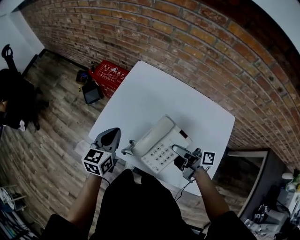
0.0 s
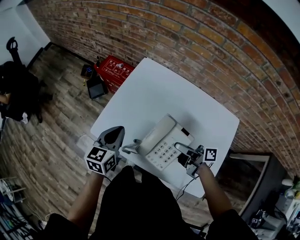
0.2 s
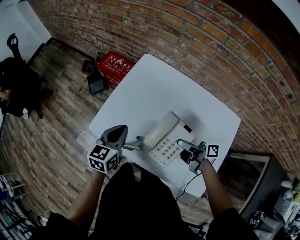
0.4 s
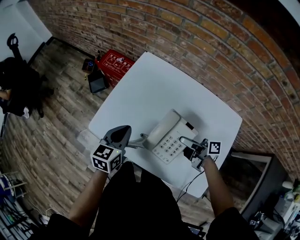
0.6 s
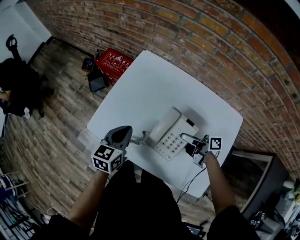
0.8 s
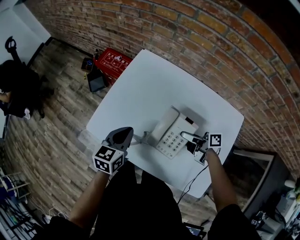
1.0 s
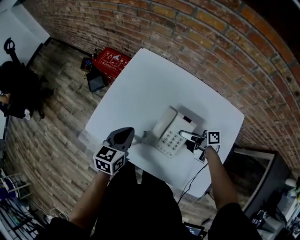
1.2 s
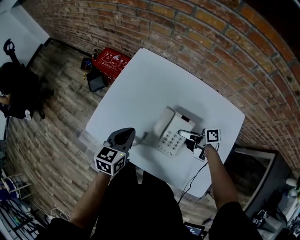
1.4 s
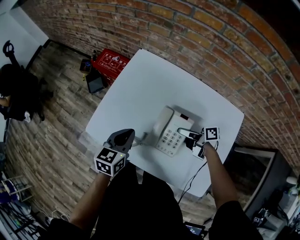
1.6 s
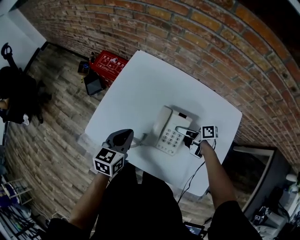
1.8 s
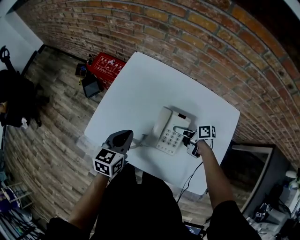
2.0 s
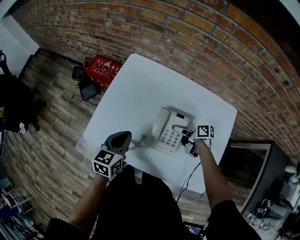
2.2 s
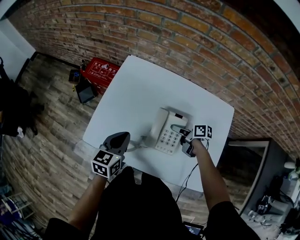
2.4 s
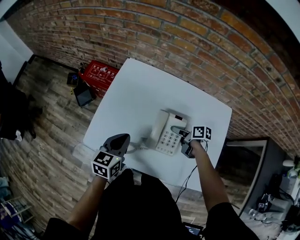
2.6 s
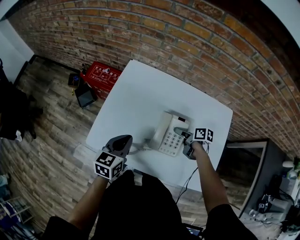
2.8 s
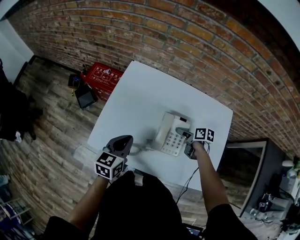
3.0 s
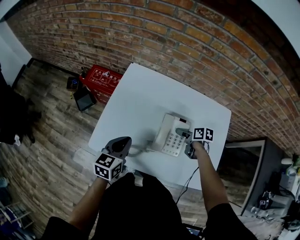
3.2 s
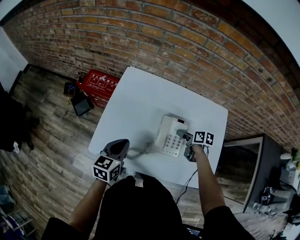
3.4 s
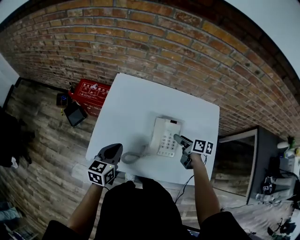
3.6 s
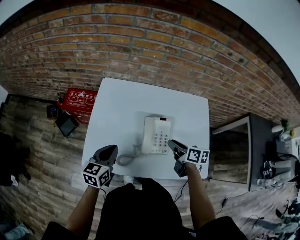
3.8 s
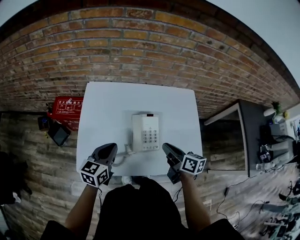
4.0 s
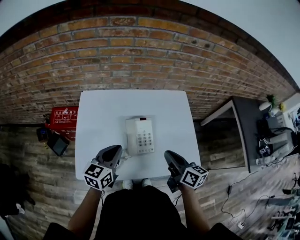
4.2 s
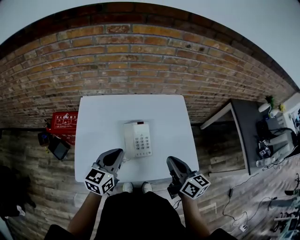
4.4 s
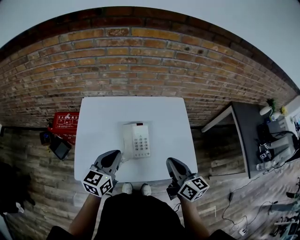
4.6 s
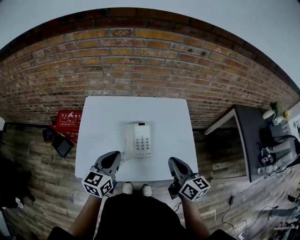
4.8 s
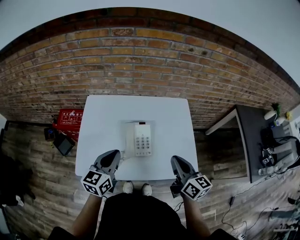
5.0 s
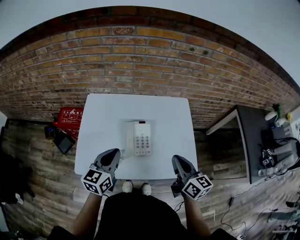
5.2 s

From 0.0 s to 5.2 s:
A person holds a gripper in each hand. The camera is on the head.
From 0.0 s to 1.8 s: The left gripper shifts by approximately 10 cm.
From 1.8 s to 3.4 s: The left gripper shifts by roughly 5 cm.
From 3.4 s to 5.2 s: The left gripper ends up about 15 cm from where it was.

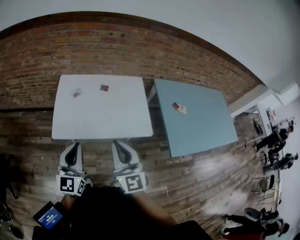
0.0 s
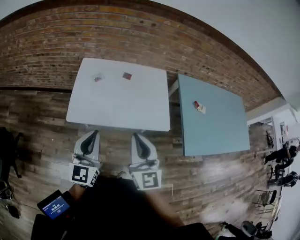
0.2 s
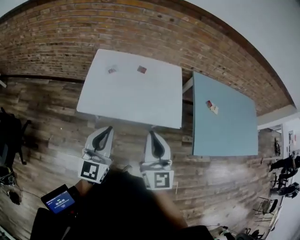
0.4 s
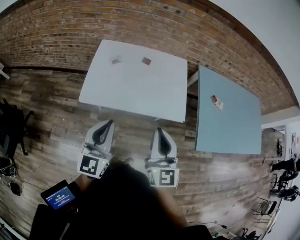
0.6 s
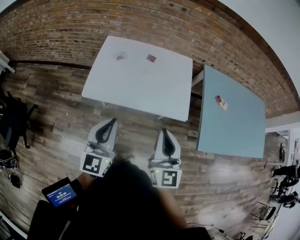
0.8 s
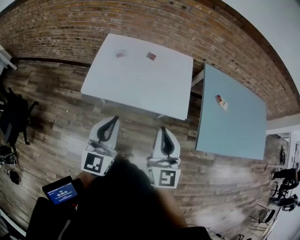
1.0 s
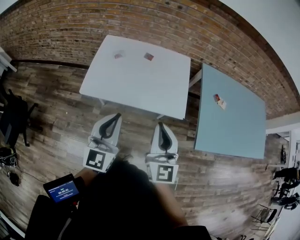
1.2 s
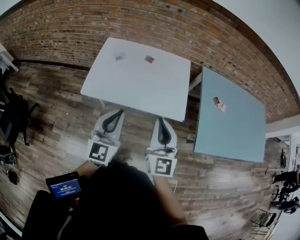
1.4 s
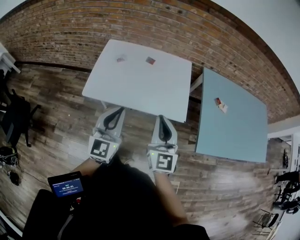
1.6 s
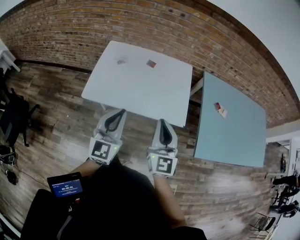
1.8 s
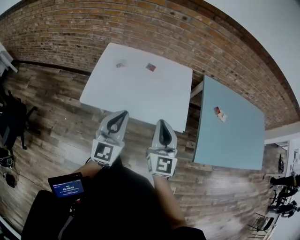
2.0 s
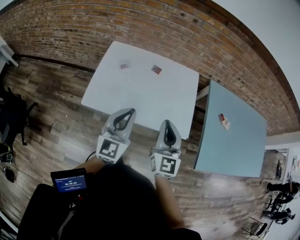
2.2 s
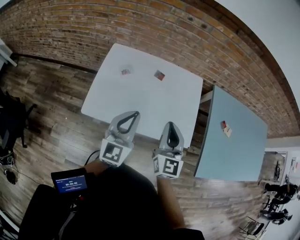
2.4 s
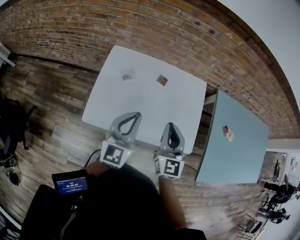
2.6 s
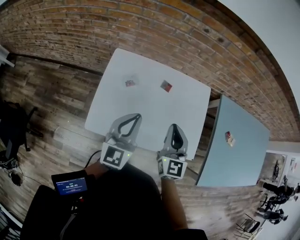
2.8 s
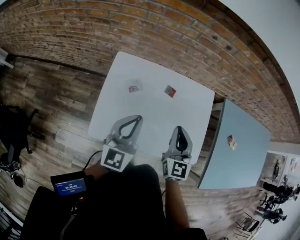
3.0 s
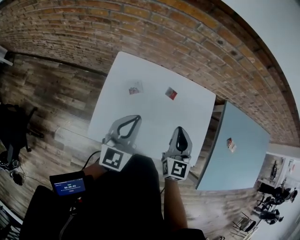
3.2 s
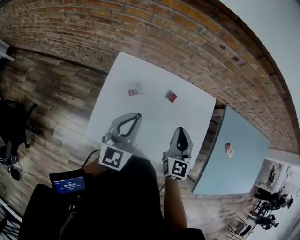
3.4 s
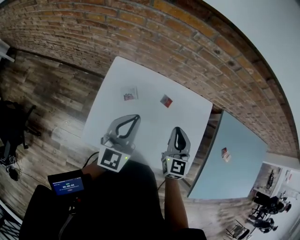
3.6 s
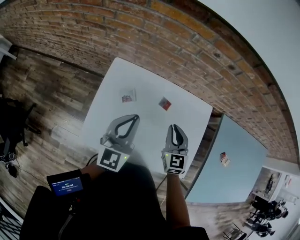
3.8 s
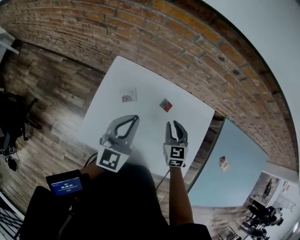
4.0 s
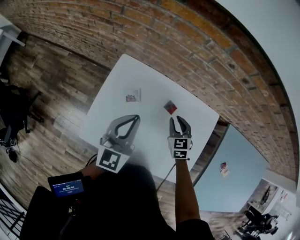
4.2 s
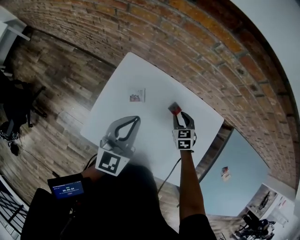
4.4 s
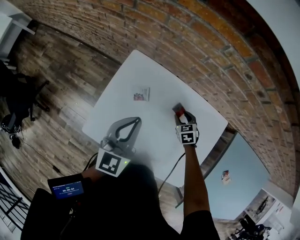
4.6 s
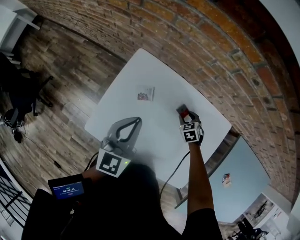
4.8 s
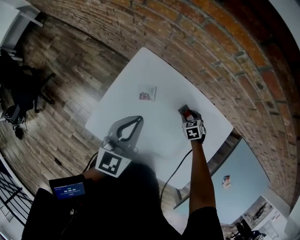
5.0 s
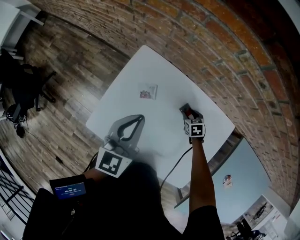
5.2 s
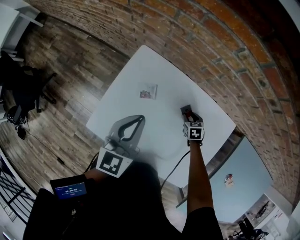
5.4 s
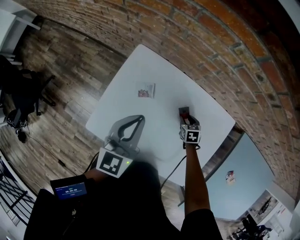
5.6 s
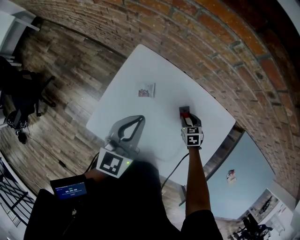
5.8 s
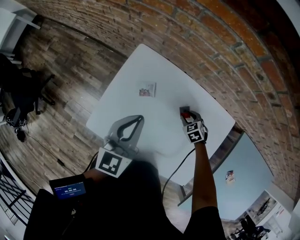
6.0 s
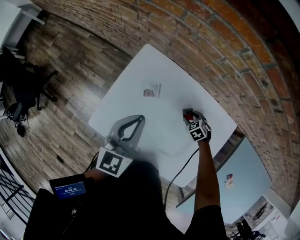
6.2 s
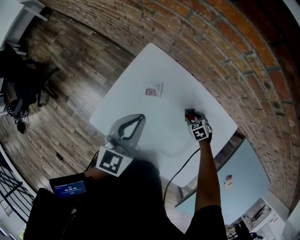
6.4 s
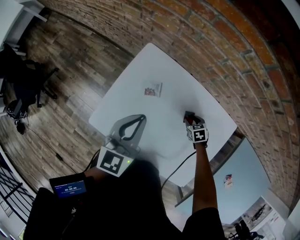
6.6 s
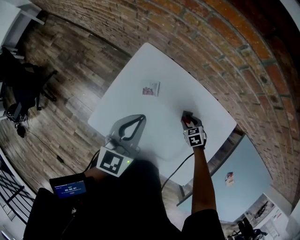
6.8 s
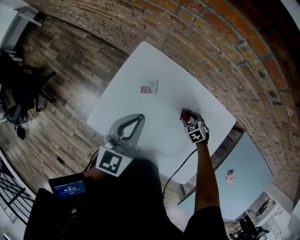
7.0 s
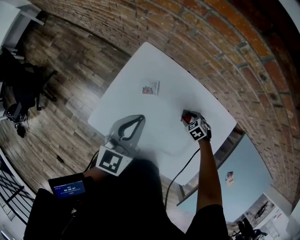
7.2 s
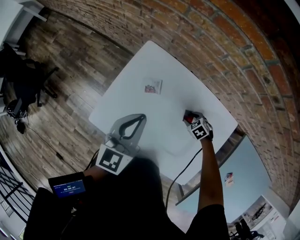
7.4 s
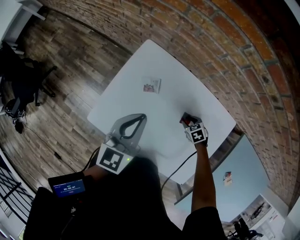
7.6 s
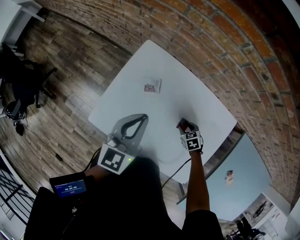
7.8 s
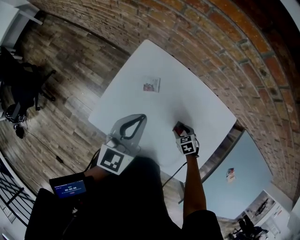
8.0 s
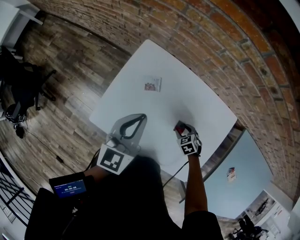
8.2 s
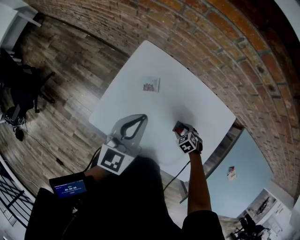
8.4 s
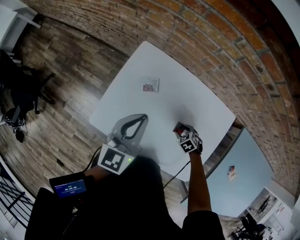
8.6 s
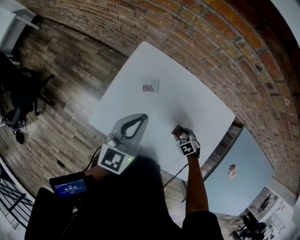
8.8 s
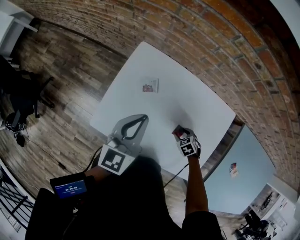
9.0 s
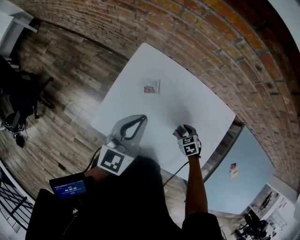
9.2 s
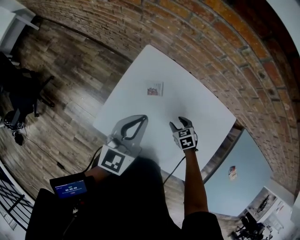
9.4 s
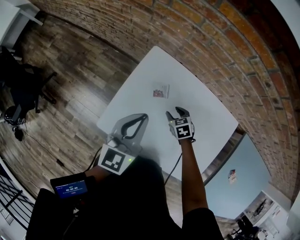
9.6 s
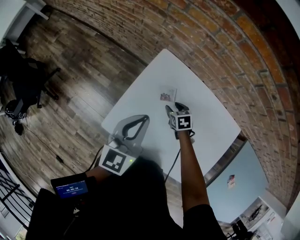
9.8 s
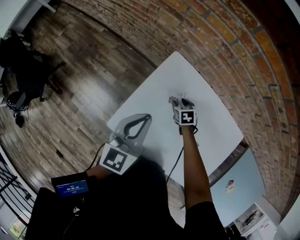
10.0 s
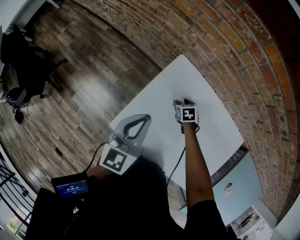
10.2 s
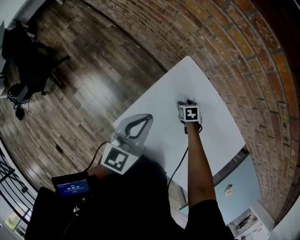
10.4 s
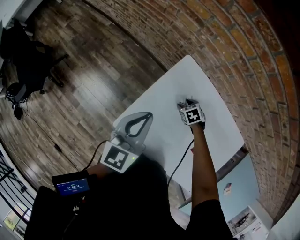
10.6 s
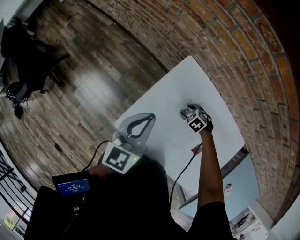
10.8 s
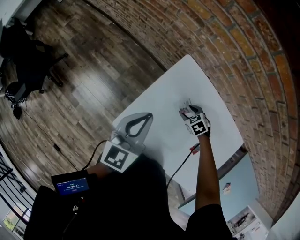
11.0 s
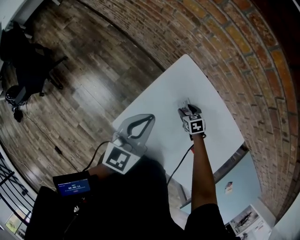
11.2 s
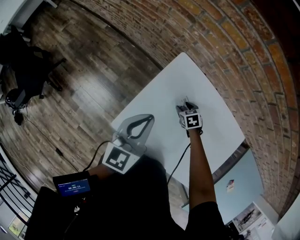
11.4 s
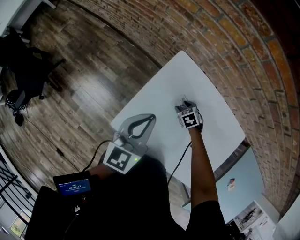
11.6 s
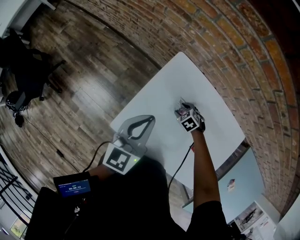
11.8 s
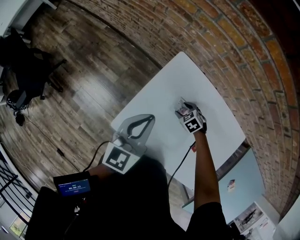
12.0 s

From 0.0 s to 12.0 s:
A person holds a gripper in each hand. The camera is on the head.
From 0.0 s to 1.6 s: The grippers both shift to the right by approximately 10 cm.
From 1.6 s to 3.0 s: The left gripper heads forward and to the left, covering approximately 30 cm; the right gripper is displaced forward by roughly 30 cm.
From 3.0 s to 4.4 s: The left gripper is displaced forward by some 10 cm, while the right gripper is displaced downward and forward by approximately 30 cm, tips its fingers downward by about 40 degrees, and opens.
From 4.4 s to 6.0 s: The right gripper goes roughly 10 cm downward, and turns by roughly 20 degrees.
From 6.0 s to 7.6 s: The grippers make only small movements.
From 7.6 s to 9.0 s: The right gripper shifts by about 10 cm.
From 9.0 s to 10.4 s: The right gripper changes place by approximately 30 cm. Meanwhile the left gripper ends up some 15 cm from where it was.
From 10.4 s to 12.0 s: The right gripper moves about 5 cm, and changes its angle by about 30 degrees.

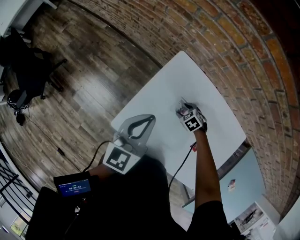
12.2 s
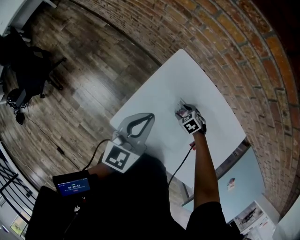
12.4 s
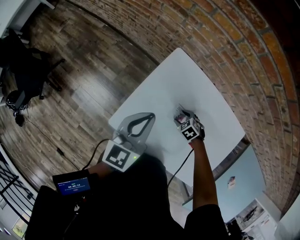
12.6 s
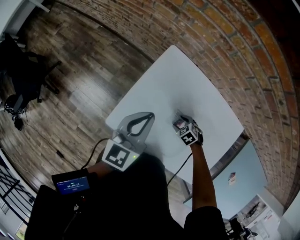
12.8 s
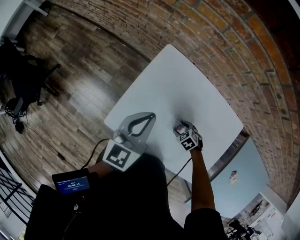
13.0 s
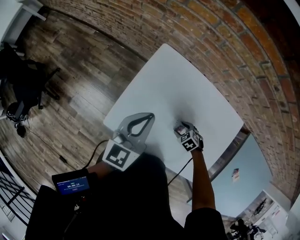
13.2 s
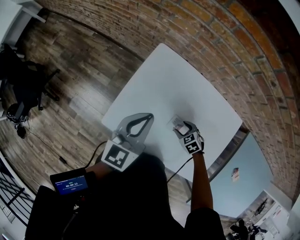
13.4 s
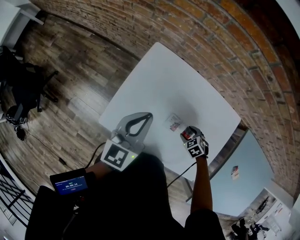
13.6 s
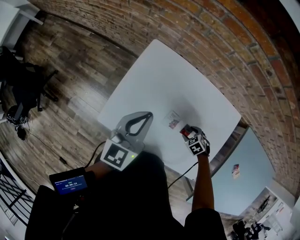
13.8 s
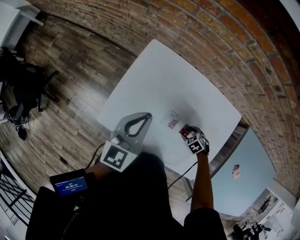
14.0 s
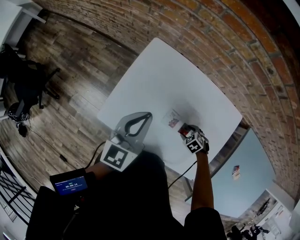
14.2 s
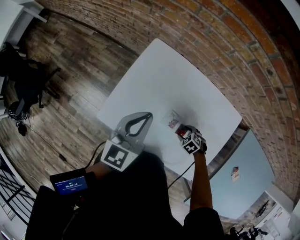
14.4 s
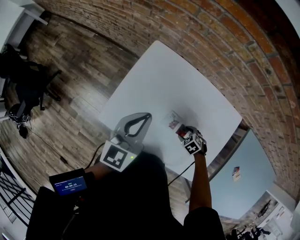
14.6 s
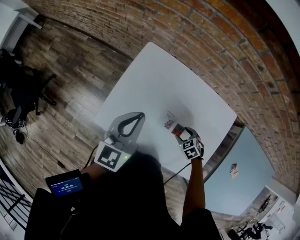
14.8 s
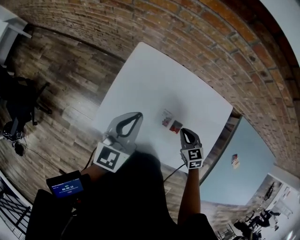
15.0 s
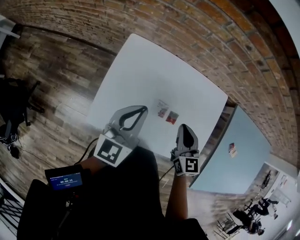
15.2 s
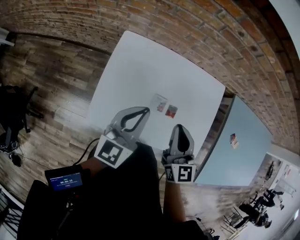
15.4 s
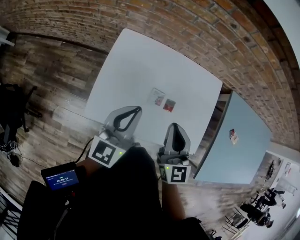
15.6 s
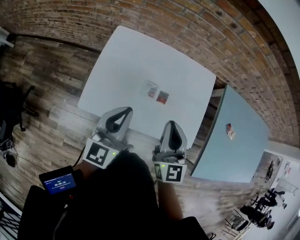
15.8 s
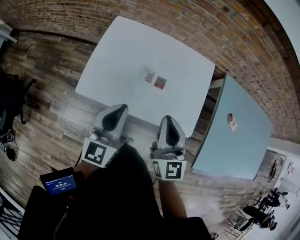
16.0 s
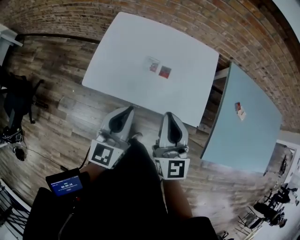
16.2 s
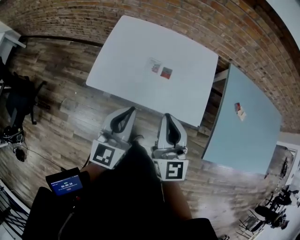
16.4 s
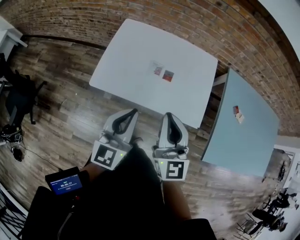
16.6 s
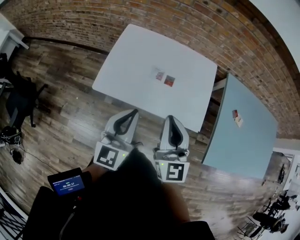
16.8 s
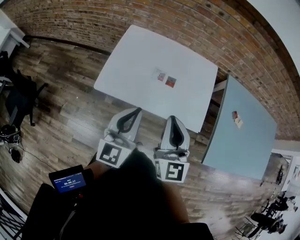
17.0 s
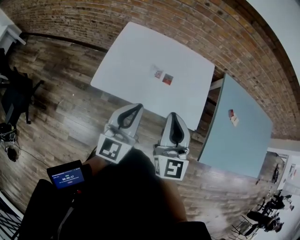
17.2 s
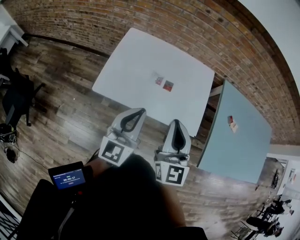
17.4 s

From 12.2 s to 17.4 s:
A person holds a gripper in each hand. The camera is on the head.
From 12.2 s to 14.0 s: The left gripper shifts by some 10 cm. The right gripper moves about 25 cm.
From 14.0 s to 15.6 s: The right gripper moves upward, about 35 cm, points its fingers about 70 degrees further upward, and closes its fingers. The left gripper shifts by roughly 10 cm.
From 15.6 s to 17.4 s: Both grippers move backward, some 20 cm.

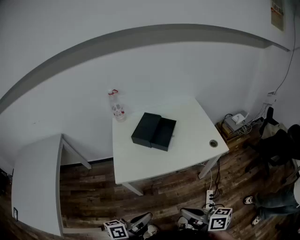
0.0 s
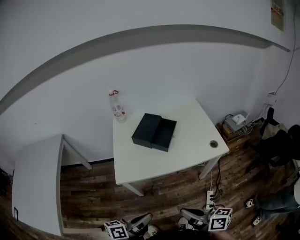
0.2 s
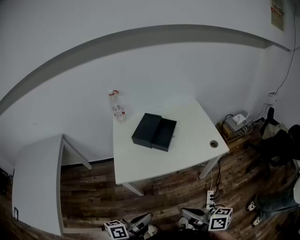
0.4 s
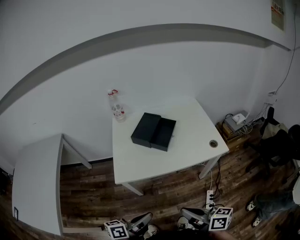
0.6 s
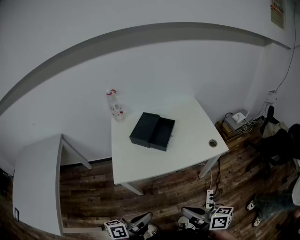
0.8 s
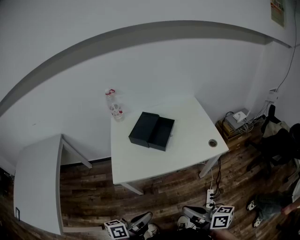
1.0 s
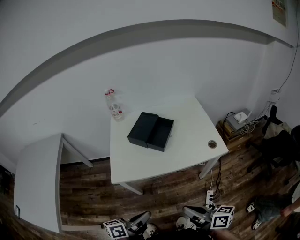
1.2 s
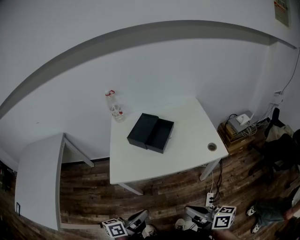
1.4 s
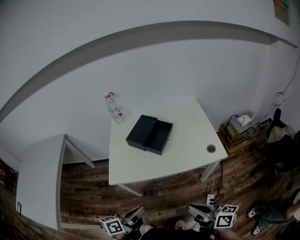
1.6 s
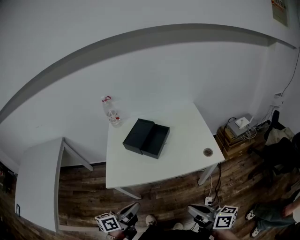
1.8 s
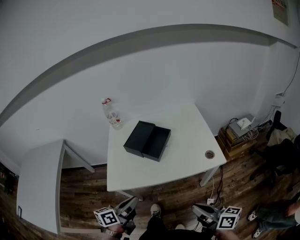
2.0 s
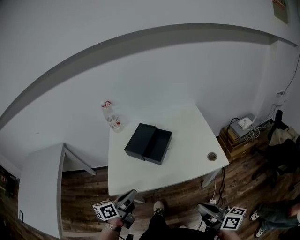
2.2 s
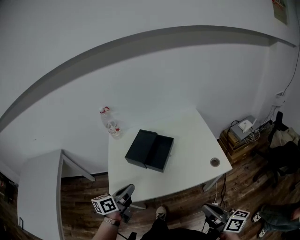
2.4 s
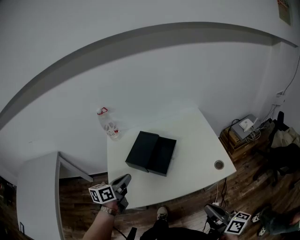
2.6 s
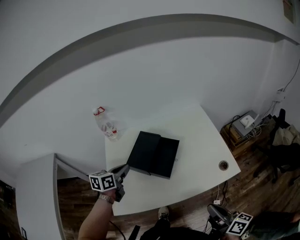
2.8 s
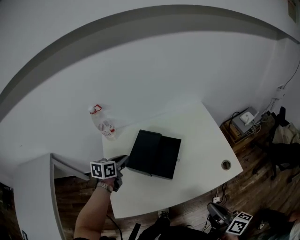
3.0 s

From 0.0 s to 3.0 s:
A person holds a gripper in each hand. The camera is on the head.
From 0.0 s to 1.6 s: The left gripper moves forward, about 5 cm. Meanwhile the right gripper heads to the right, covering approximately 10 cm.
From 1.6 s to 3.0 s: The right gripper travels forward by some 15 cm, and rotates approximately 30 degrees. Meanwhile the left gripper travels forward by roughly 50 cm, and swivels some 40 degrees.
